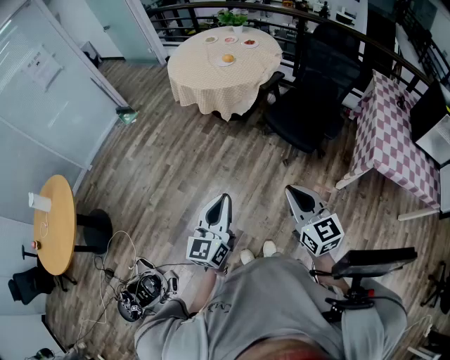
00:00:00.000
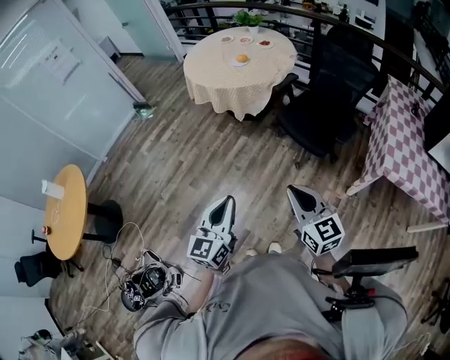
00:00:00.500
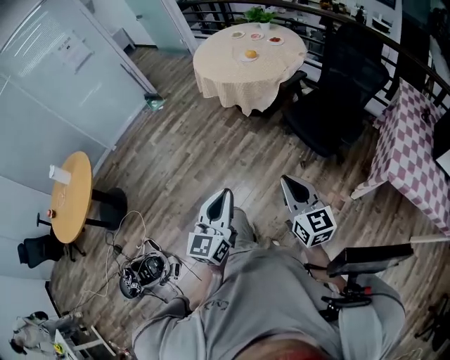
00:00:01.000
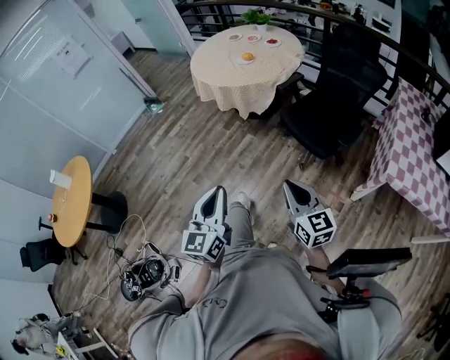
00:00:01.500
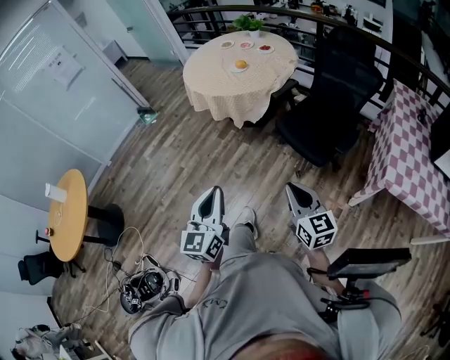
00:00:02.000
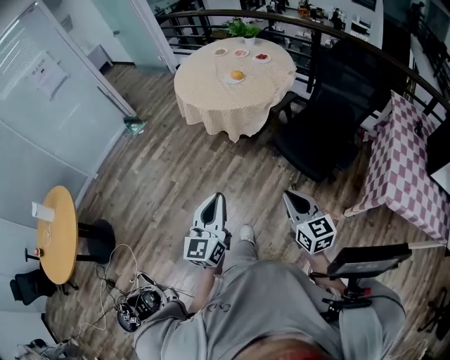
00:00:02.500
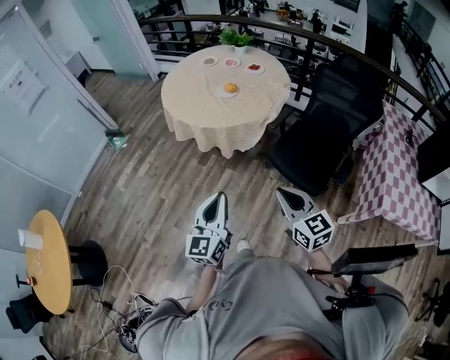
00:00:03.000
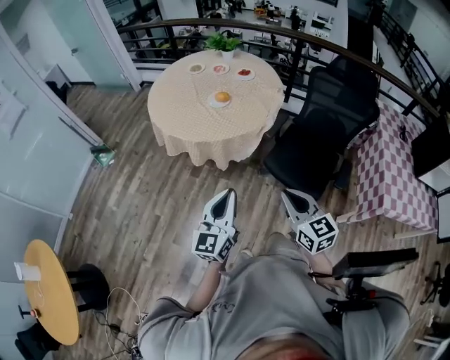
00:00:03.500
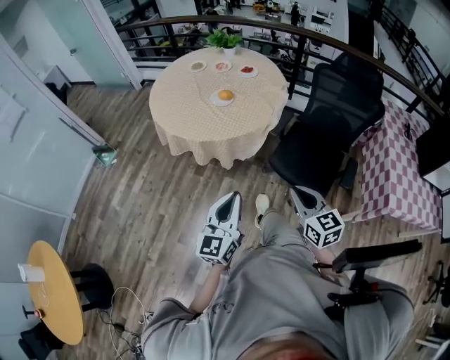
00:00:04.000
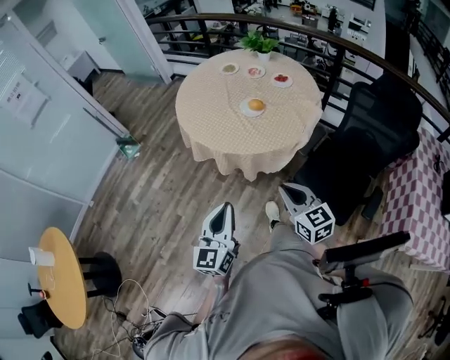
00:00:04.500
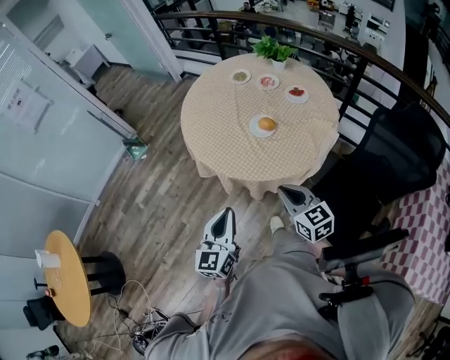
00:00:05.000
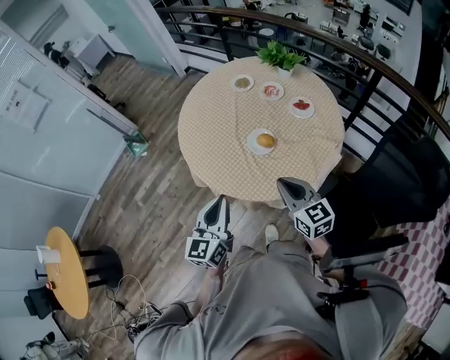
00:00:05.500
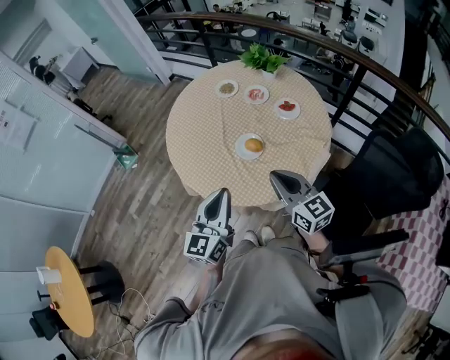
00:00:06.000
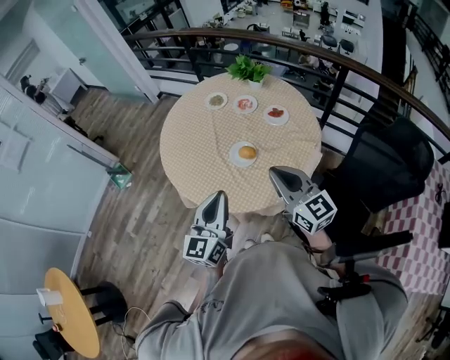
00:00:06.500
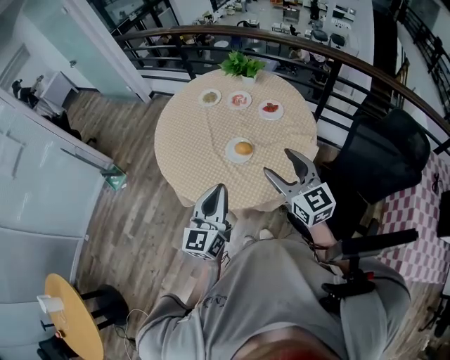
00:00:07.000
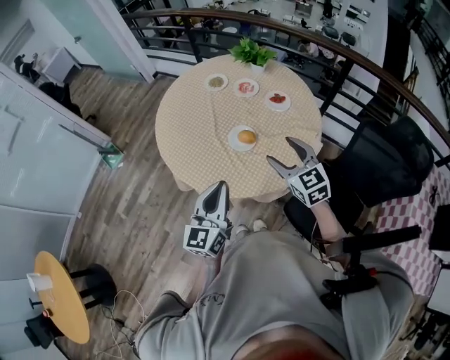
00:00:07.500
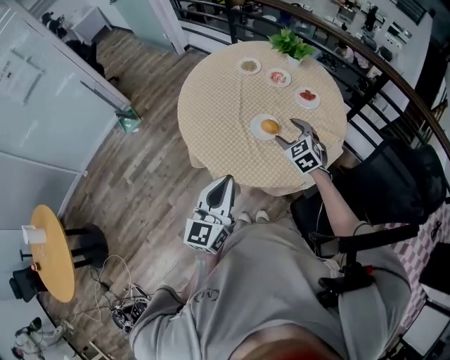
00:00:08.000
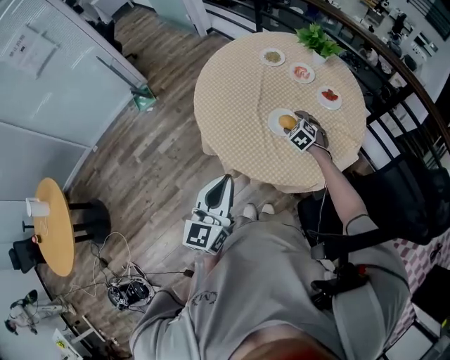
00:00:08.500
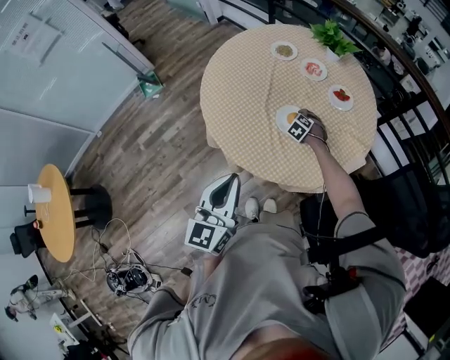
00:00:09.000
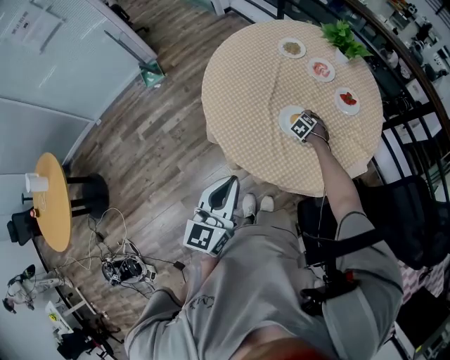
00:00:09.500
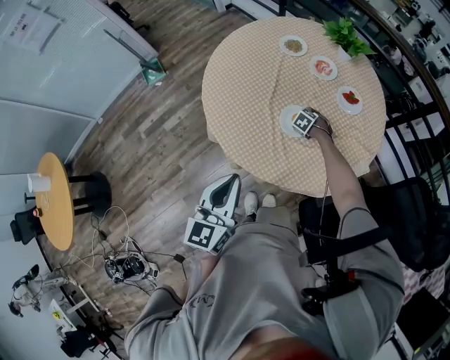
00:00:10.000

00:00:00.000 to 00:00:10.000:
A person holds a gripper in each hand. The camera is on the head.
00:00:00.000 to 00:00:02.000: The right gripper moves to the right, forward and downward, roughly 15 cm. Meanwhile the left gripper goes about 10 cm to the right and forward.
00:00:02.000 to 00:00:04.000: The grippers both shift forward by approximately 35 cm. The left gripper changes its angle by roughly 20 degrees.
00:00:04.000 to 00:00:06.000: Both grippers are carried forward, some 50 cm. The right gripper turns by about 30 degrees.
00:00:06.000 to 00:00:08.000: The right gripper travels forward and downward by about 15 cm, points its fingers roughly 30 degrees further downward, and opens up, while the left gripper shifts by about 5 cm.
00:00:08.000 to 00:00:10.000: The right gripper travels downward by some 30 cm, and angles its fingers downward, by about 40 degrees, while the left gripper moves about 5 cm.

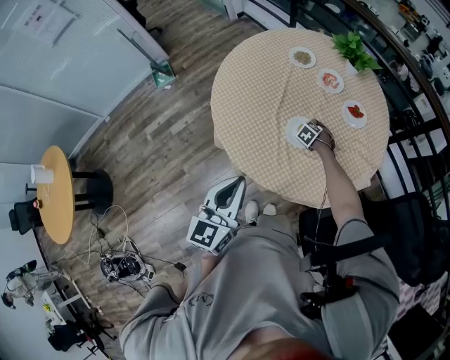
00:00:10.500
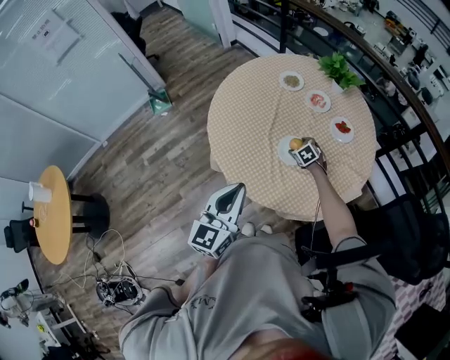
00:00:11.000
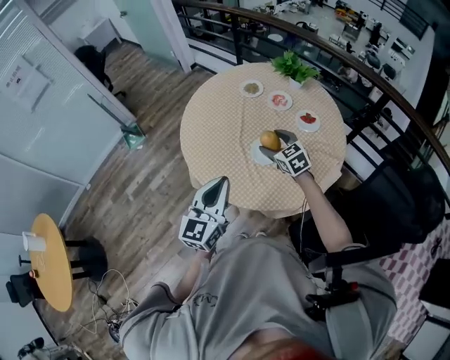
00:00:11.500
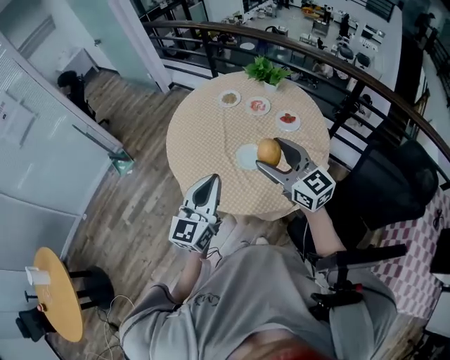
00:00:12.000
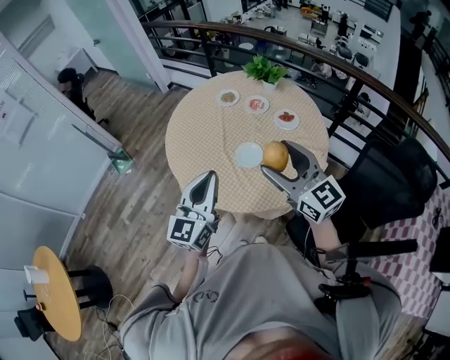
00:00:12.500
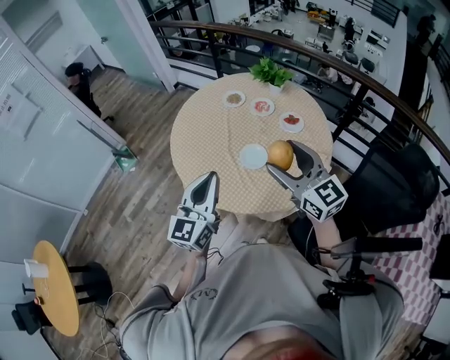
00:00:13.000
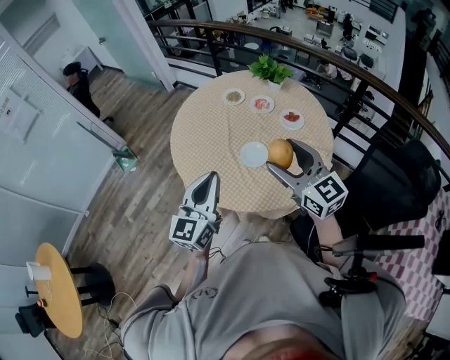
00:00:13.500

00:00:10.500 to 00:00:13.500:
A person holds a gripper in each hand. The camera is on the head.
00:00:10.500 to 00:00:12.000: The left gripper is displaced upward by roughly 5 cm, and rotates roughly 20 degrees; the right gripper goes approximately 50 cm upward, and tilts its fingers roughly 80 degrees upward.

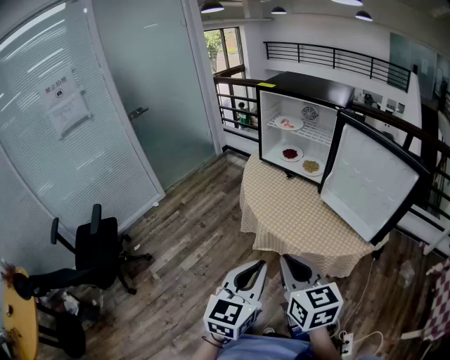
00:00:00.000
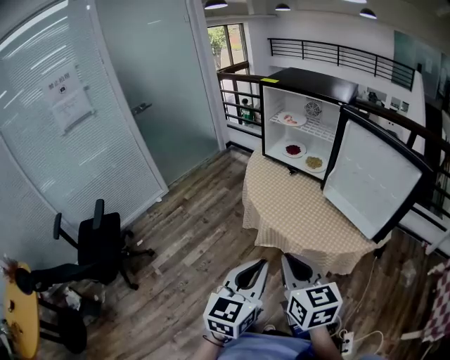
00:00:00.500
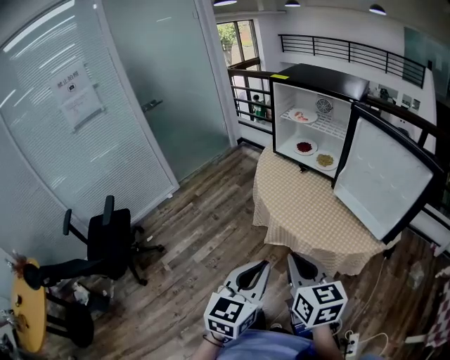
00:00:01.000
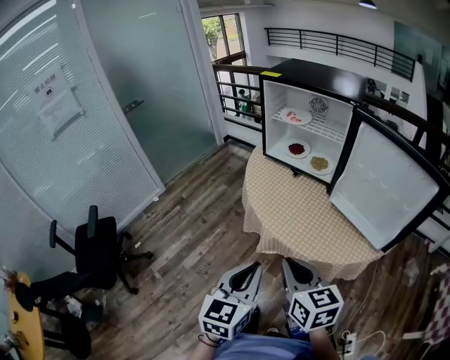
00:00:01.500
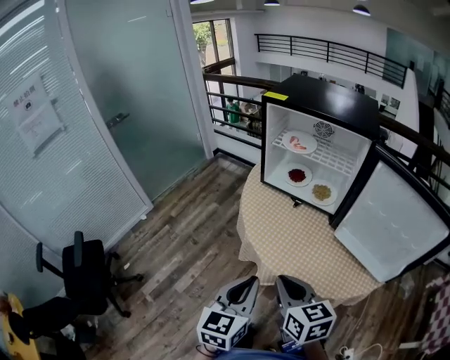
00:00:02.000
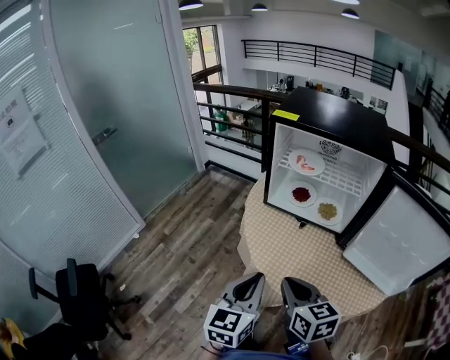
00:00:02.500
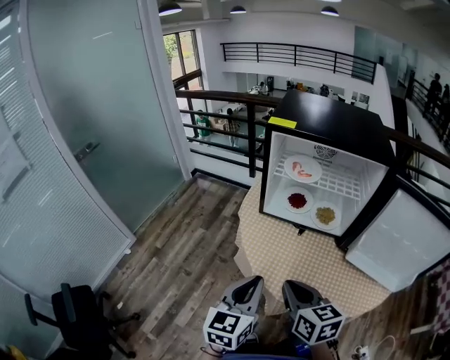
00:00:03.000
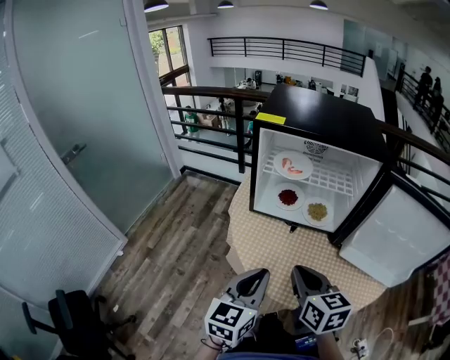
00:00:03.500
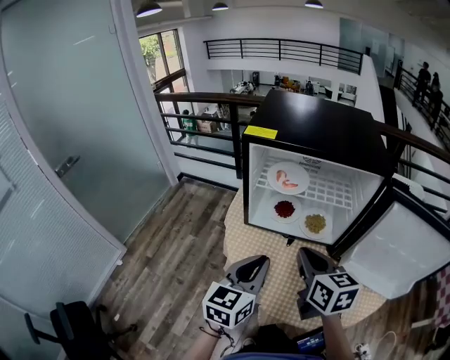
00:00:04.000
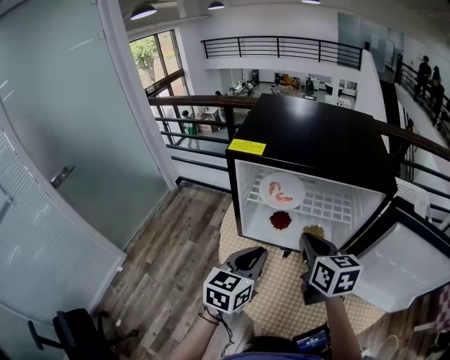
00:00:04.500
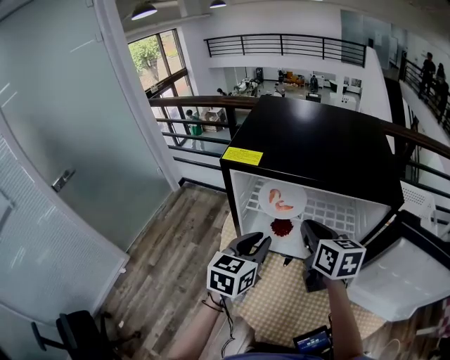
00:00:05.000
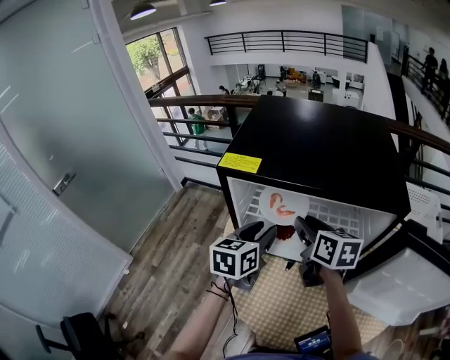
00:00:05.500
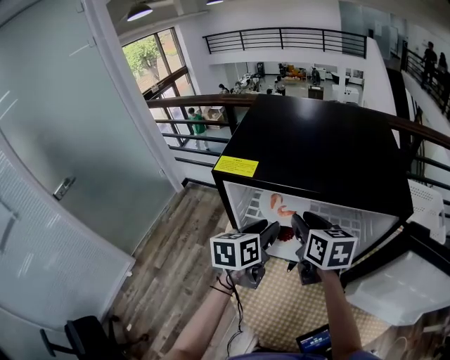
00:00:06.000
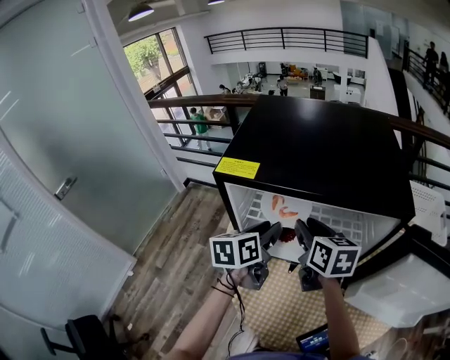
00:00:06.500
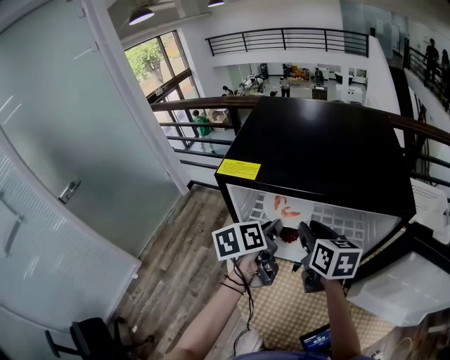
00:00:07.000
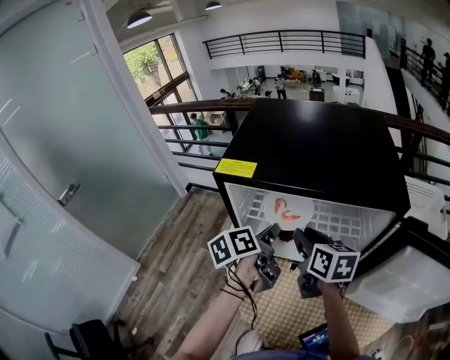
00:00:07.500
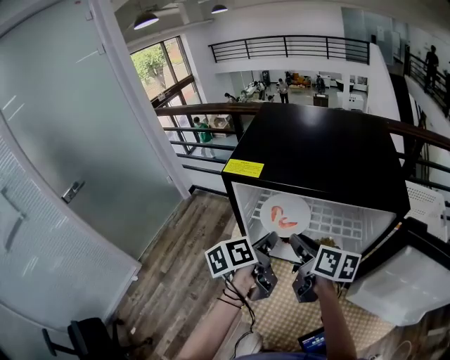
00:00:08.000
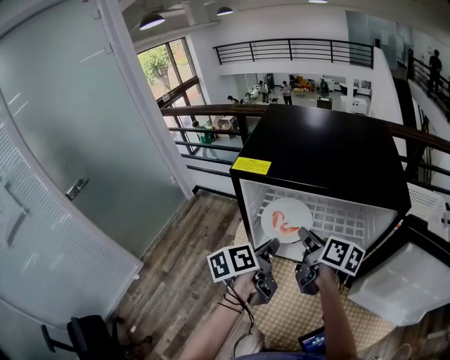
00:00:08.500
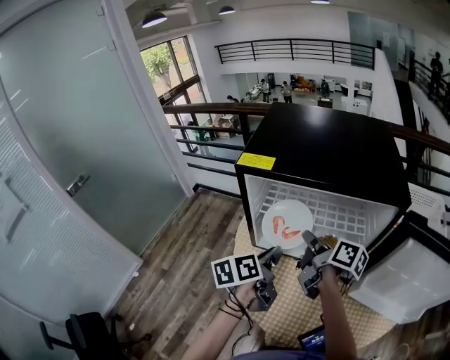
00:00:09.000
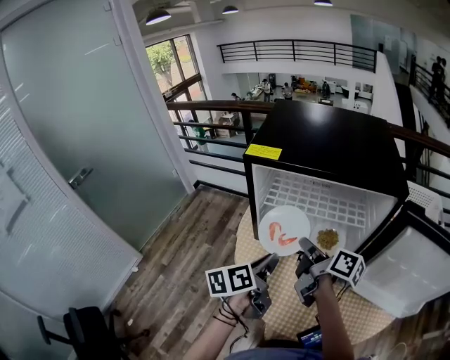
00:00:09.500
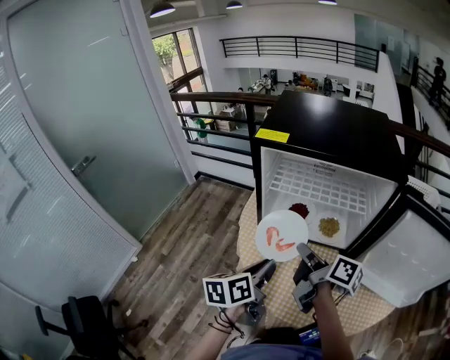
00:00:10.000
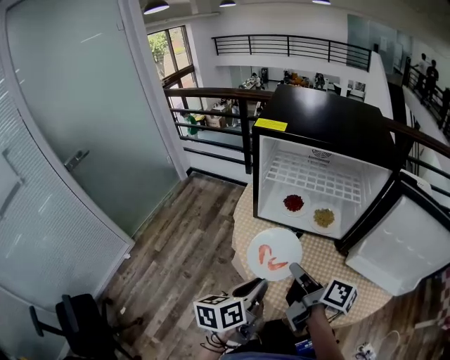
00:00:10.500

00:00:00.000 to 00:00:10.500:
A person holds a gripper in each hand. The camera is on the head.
00:00:00.000 to 00:00:02.000: Both grippers move forward, some 20 cm.
00:00:02.000 to 00:00:04.000: Both grippers move forward, roughly 25 cm. The left gripper rotates roughly 20 degrees; the right gripper swivels roughly 20 degrees.
00:00:04.000 to 00:00:06.500: The grippers both shift forward by some 25 cm. The right gripper opens its fingers, while the left gripper swivels approximately 30 degrees, and opens its fingers.
00:00:06.500 to 00:00:08.500: The right gripper turns by about 30 degrees, while the left gripper heads backward, covering some 5 cm, turns by about 20 degrees, and closes its fingers.
00:00:08.500 to 00:00:10.500: The grippers both shift backward by about 25 cm.

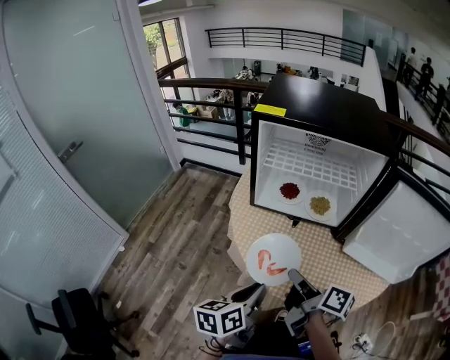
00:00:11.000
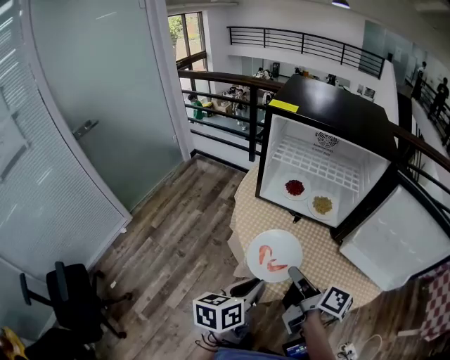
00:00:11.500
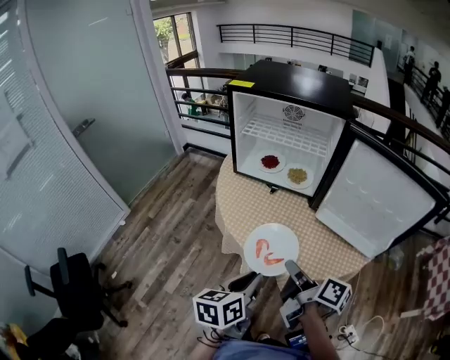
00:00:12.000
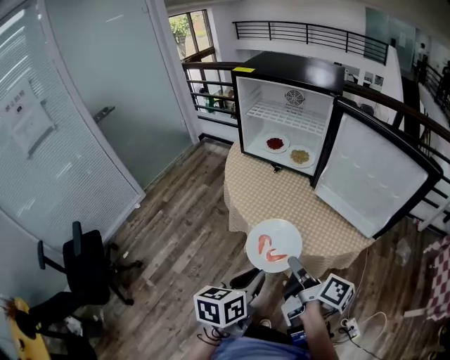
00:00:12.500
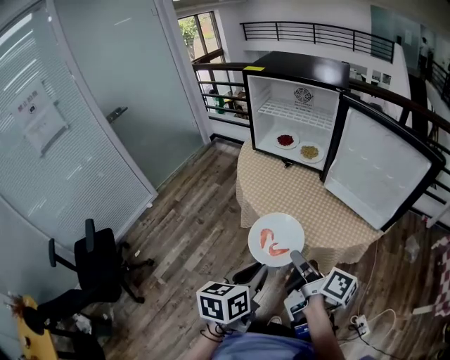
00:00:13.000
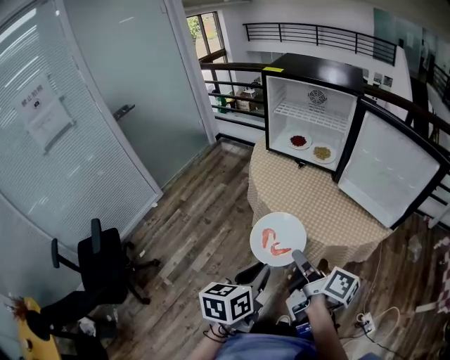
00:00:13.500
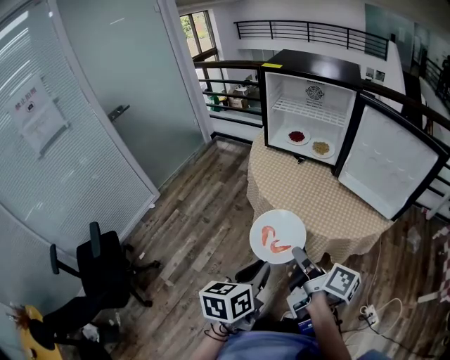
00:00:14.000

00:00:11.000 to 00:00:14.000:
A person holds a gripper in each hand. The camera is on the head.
00:00:11.000 to 00:00:12.500: The grippers both shift backward and to the right by some 30 cm.
00:00:12.500 to 00:00:14.000: The grippers both shift to the left by some 10 cm.
